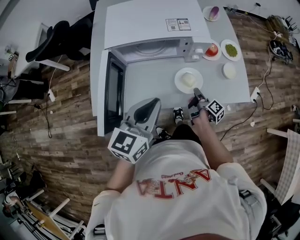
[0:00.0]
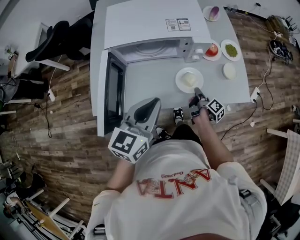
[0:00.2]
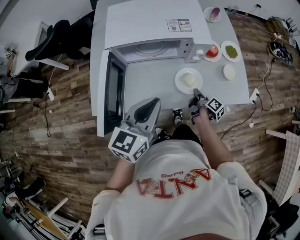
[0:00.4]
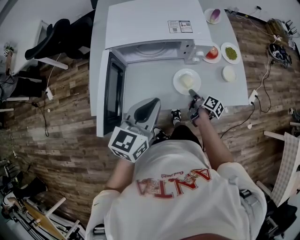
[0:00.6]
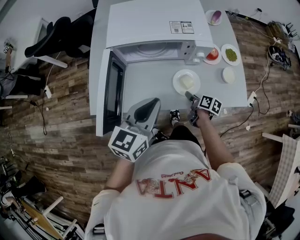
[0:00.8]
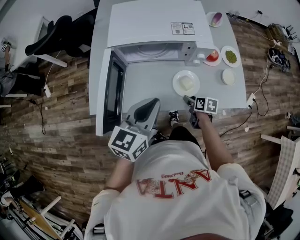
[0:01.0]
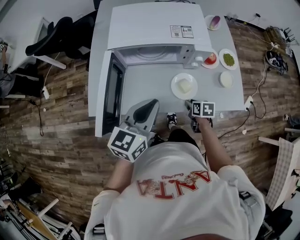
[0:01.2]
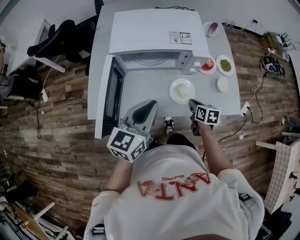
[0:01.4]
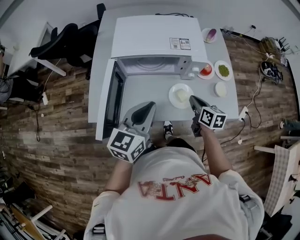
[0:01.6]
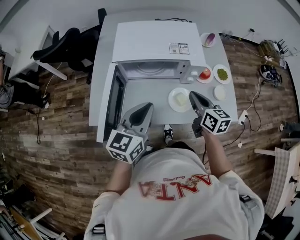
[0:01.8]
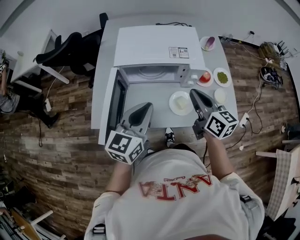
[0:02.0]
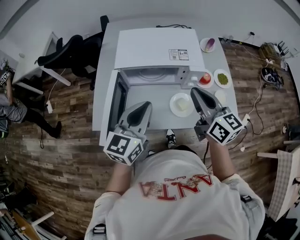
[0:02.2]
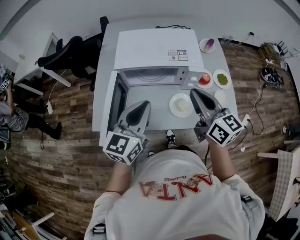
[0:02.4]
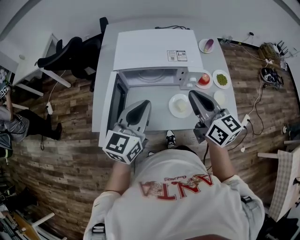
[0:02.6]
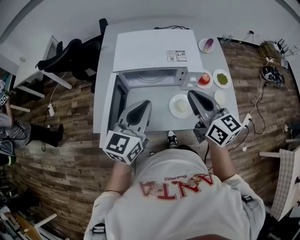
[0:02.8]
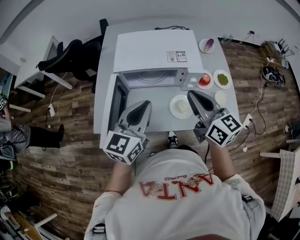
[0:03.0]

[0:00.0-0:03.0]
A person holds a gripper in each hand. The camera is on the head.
0:00.0 to 0:01.6: The right gripper shifts some 15 cm upward, twists roughly 60 degrees counterclockwise, seen from behind, and opens, then closes once more.
0:01.6 to 0:03.0: The left gripper is displaced upward by roughly 5 cm. Meanwhile the right gripper shifts approximately 20 cm upward, and rotates roughly 30 degrees.

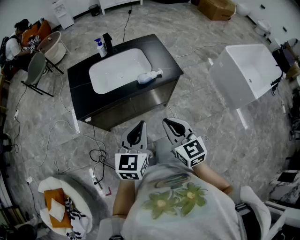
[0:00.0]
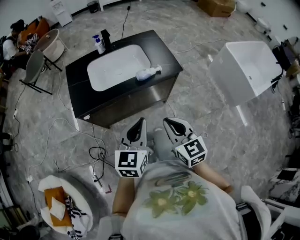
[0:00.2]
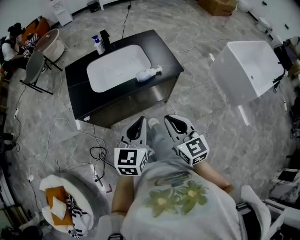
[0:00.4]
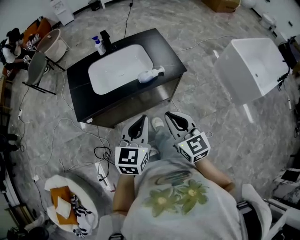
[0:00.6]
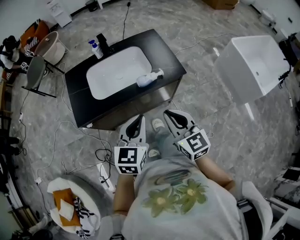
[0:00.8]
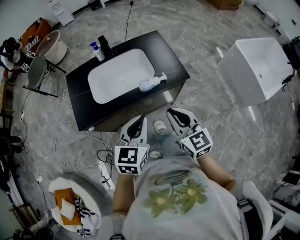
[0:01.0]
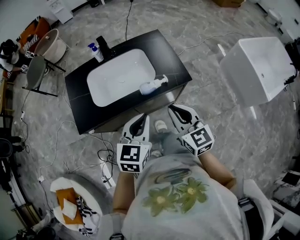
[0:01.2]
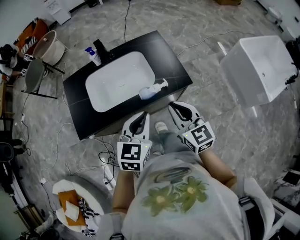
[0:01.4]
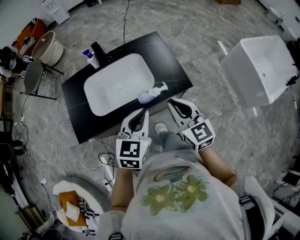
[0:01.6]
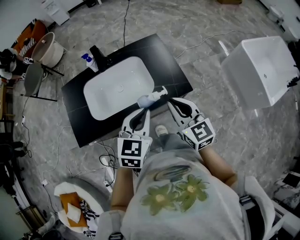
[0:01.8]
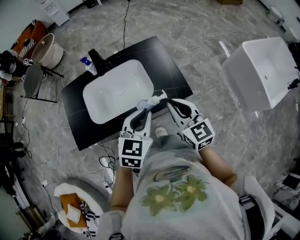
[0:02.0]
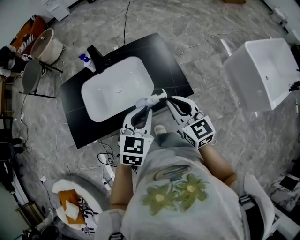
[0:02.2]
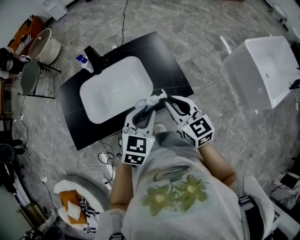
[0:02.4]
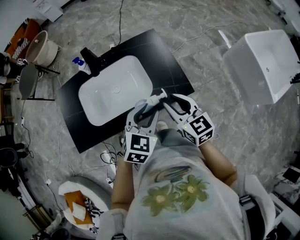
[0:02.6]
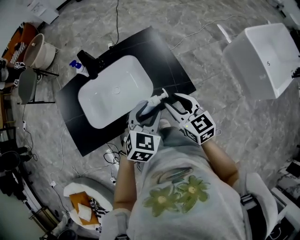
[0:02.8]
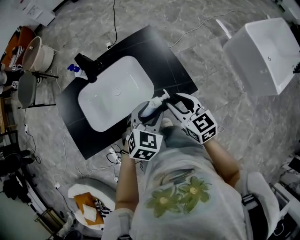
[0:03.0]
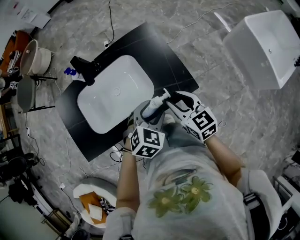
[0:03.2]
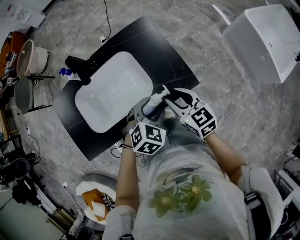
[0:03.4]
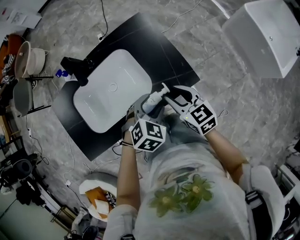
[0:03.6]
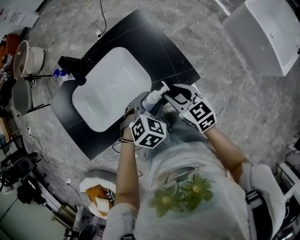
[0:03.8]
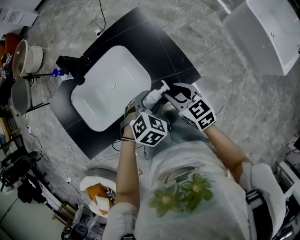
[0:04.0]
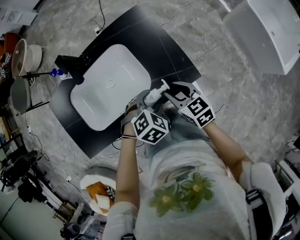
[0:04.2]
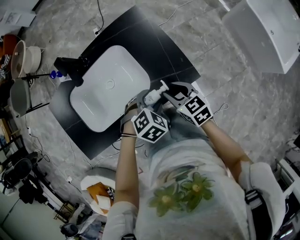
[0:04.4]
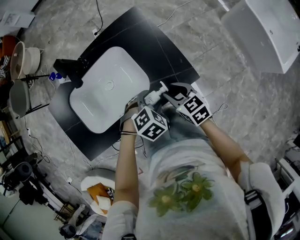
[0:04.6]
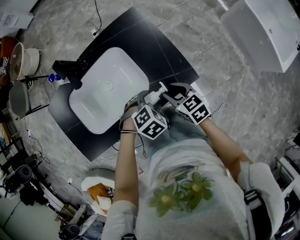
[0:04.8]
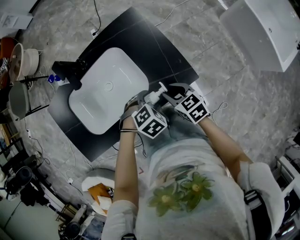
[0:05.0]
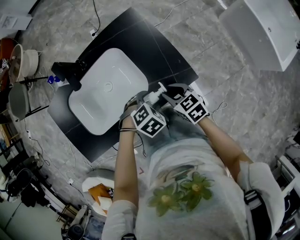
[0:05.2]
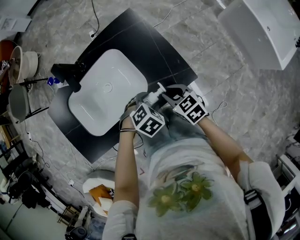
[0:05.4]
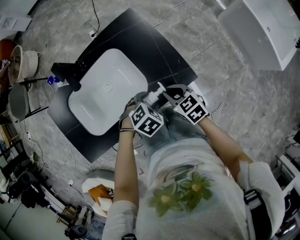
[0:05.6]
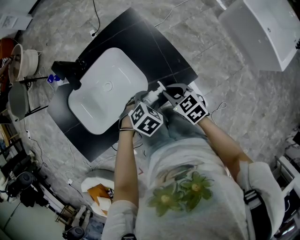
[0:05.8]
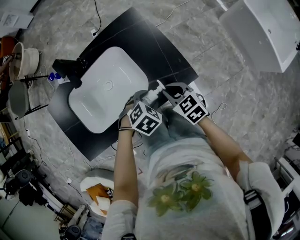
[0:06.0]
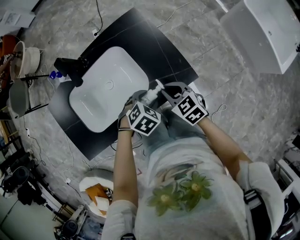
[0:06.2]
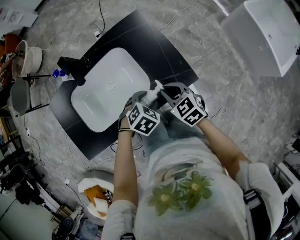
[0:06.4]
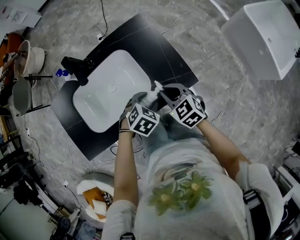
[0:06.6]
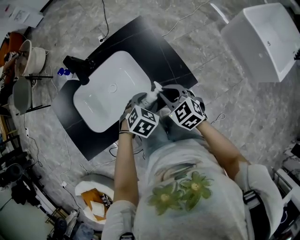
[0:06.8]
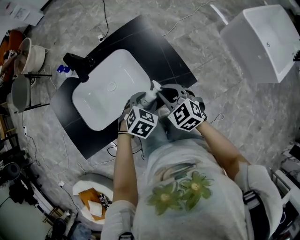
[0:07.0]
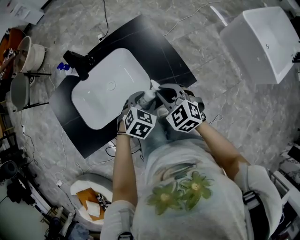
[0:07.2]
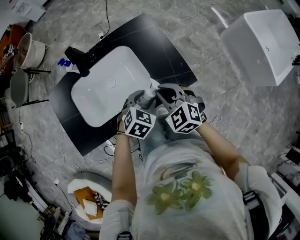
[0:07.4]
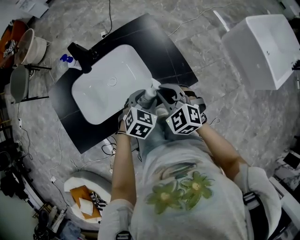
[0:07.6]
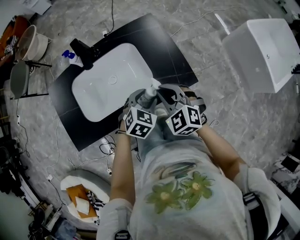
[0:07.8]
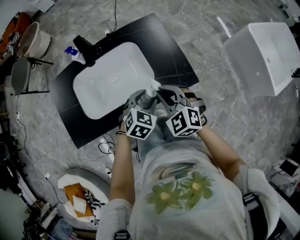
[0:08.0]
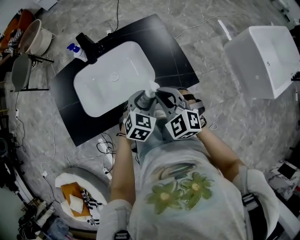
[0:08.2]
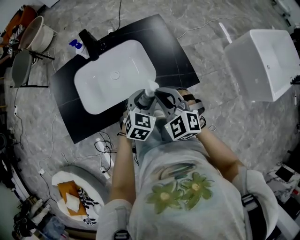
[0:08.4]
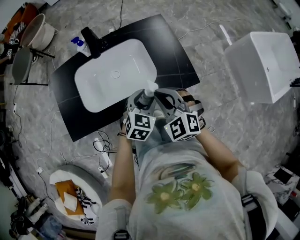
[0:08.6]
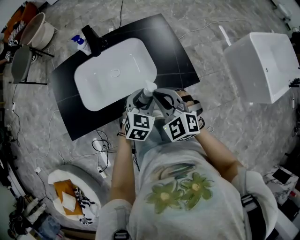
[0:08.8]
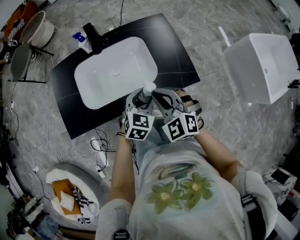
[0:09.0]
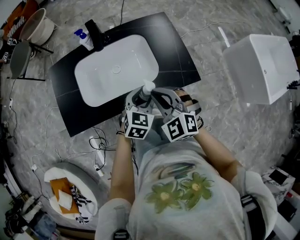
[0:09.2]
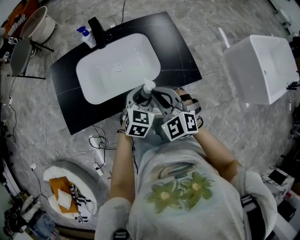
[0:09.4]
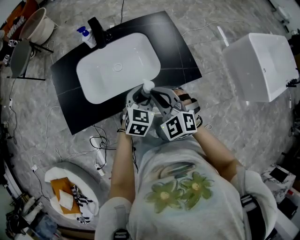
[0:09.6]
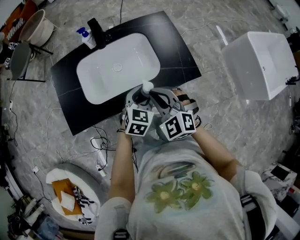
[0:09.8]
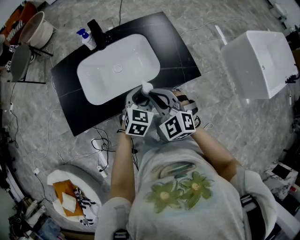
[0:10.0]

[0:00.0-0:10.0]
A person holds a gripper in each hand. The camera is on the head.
0:00.0 to 0:01.4: The grippers both shift forward by approximately 25 cm.
0:01.4 to 0:02.8: The left gripper moves forward, downward and to the right, roughly 20 cm, swivels roughly 20 degrees, and opens up, while the right gripper travels forward and downward by some 15 cm, and opens its fingers.
0:02.8 to 0:04.2: Both grippers travel together downward, about 15 cm. The left gripper changes its angle by about 30 degrees.
0:04.2 to 0:05.8: The grippers move only a little.
0:05.8 to 0:07.2: The right gripper is displaced upward by roughly 10 cm, and turns by roughly 30 degrees. Meanwhile the left gripper moves upward, roughly 5 cm.
0:07.2 to 0:08.6: The left gripper ends up roughly 5 cm from where it was, and changes its angle by roughly 20 degrees. The right gripper moves backward, to the left and upward, roughly 10 cm, and changes its angle by approximately 20 degrees.
0:08.6 to 0:10.0: The right gripper travels to the left by approximately 5 cm. Meanwhile the left gripper shifts by roughly 5 cm.

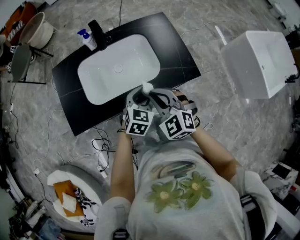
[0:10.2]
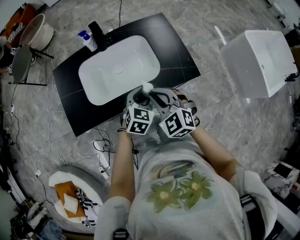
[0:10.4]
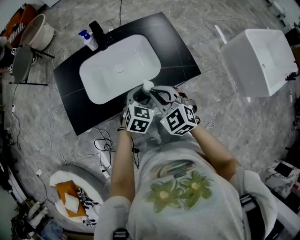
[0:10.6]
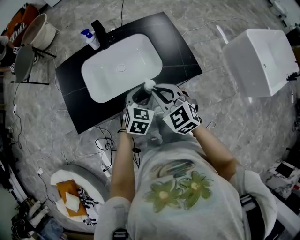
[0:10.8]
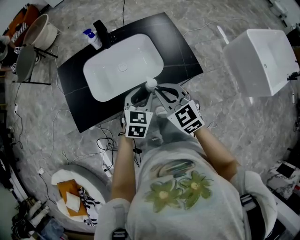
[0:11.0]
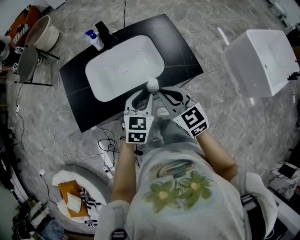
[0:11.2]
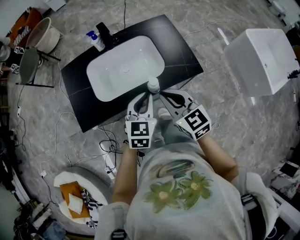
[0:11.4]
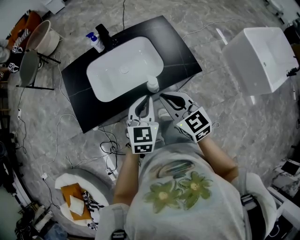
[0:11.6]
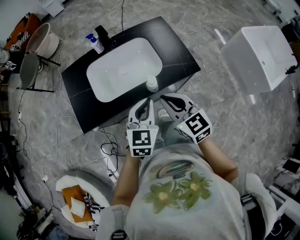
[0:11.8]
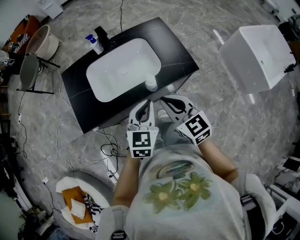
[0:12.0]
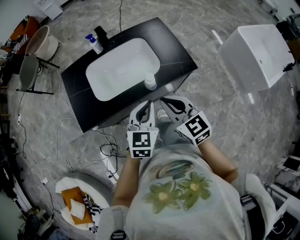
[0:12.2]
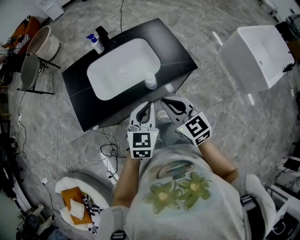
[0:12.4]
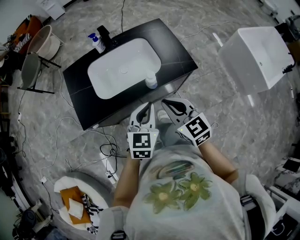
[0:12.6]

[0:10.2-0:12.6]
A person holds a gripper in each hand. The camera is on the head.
0:10.2 to 0:11.4: The left gripper travels upward and backward by approximately 10 cm, and closes its fingers, while the right gripper travels upward by approximately 5 cm, and turns by some 30 degrees.
0:11.4 to 0:12.6: Both grippers move backward, about 10 cm.

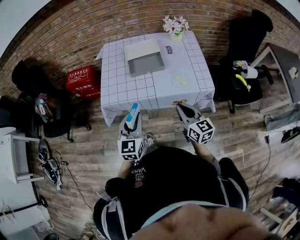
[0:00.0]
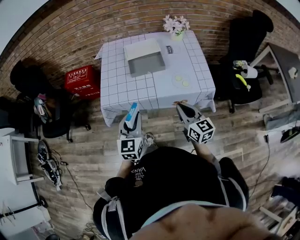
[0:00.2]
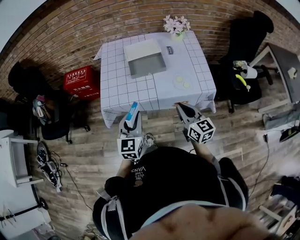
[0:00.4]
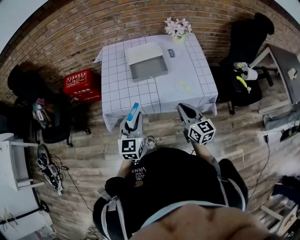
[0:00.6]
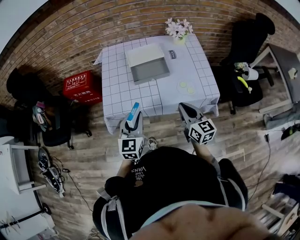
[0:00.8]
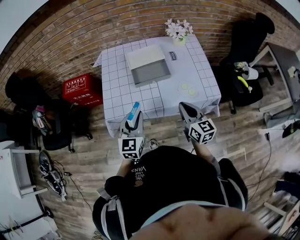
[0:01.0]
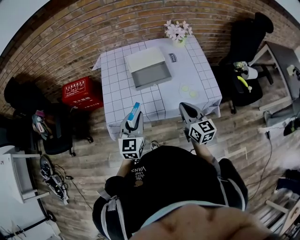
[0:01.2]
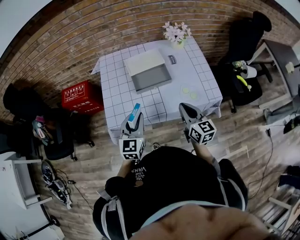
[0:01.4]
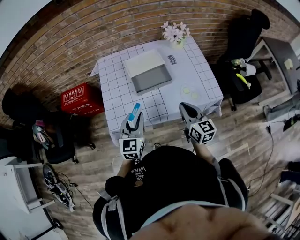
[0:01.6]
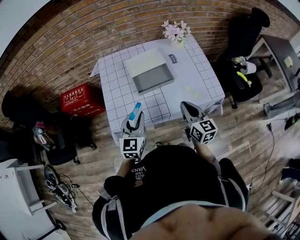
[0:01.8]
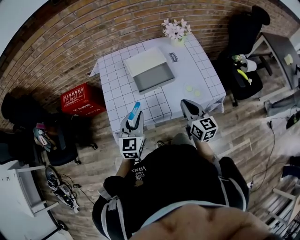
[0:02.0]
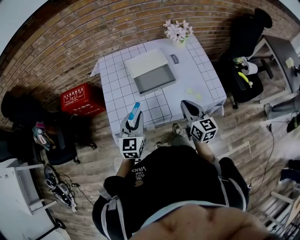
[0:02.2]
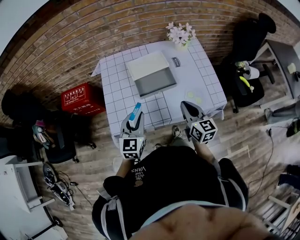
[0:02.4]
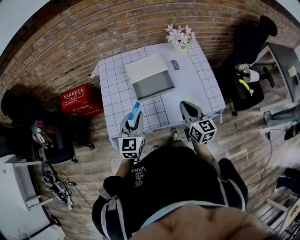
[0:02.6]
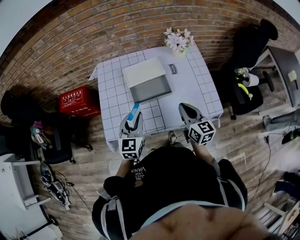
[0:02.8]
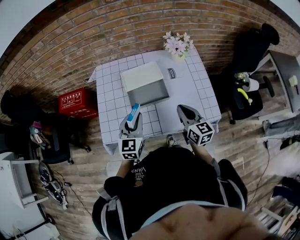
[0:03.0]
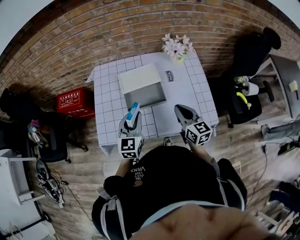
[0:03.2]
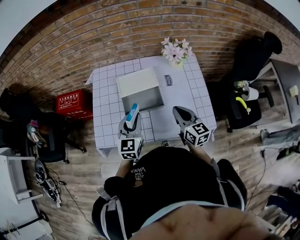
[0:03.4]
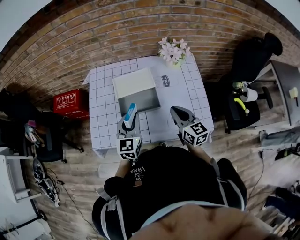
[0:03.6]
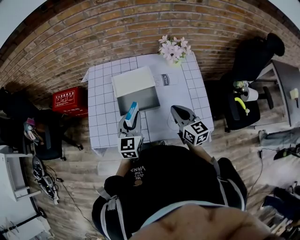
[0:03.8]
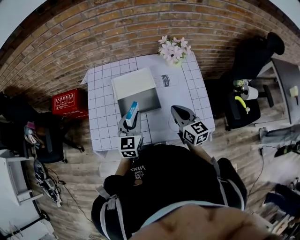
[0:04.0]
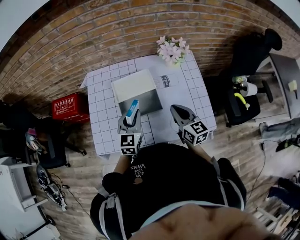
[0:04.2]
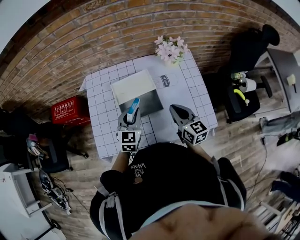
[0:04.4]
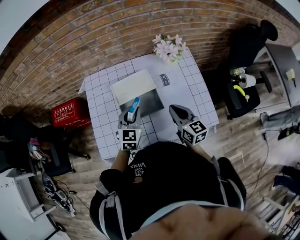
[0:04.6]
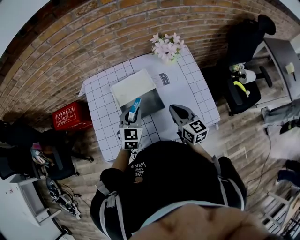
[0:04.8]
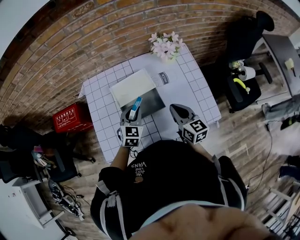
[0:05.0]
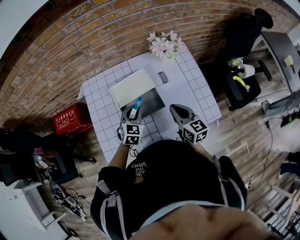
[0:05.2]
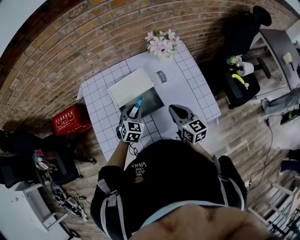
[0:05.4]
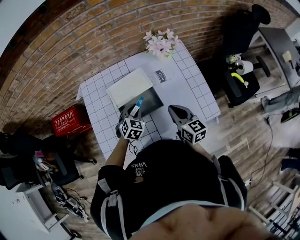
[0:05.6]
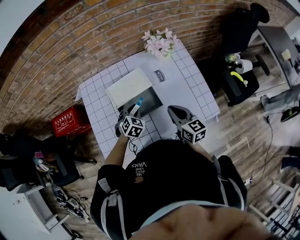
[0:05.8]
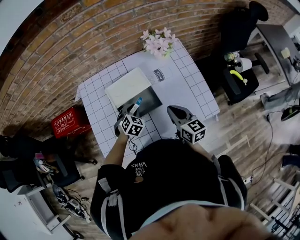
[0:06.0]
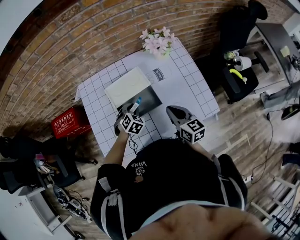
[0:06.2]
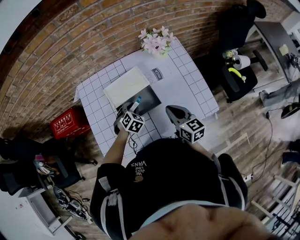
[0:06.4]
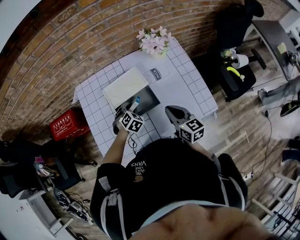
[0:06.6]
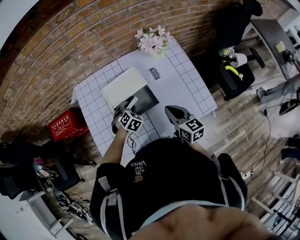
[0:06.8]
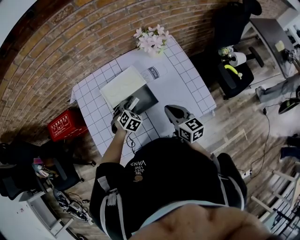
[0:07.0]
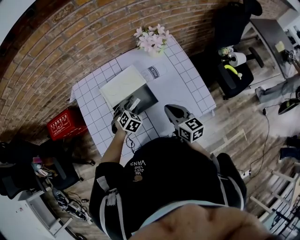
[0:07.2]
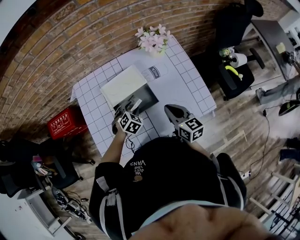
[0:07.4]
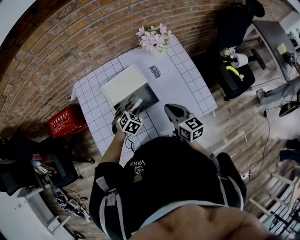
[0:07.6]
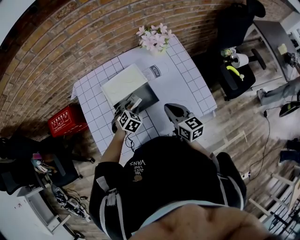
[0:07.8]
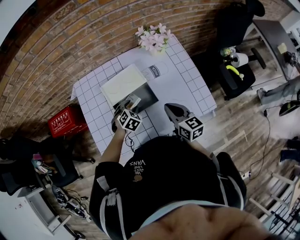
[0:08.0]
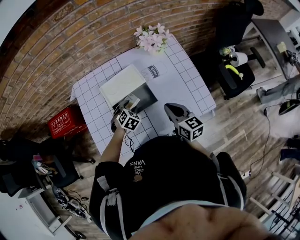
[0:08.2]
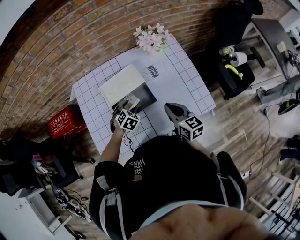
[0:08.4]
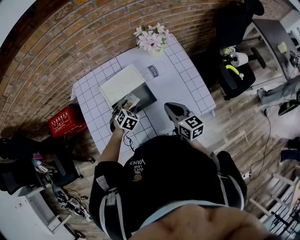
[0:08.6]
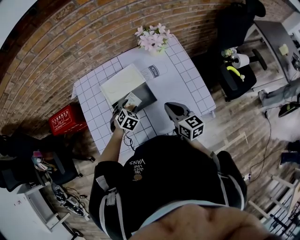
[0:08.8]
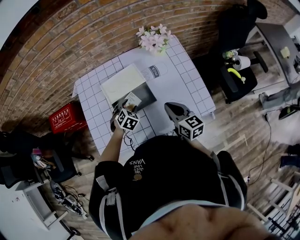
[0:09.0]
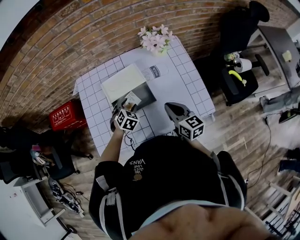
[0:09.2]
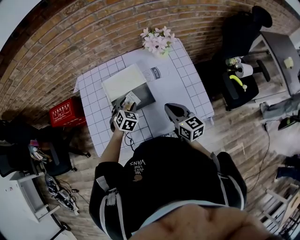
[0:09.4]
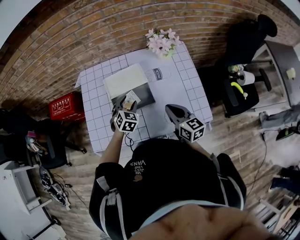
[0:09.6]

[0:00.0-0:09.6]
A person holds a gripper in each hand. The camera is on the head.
0:00.0 to 0:01.6: The grippers both shift forward by approximately 15 cm.
0:01.6 to 0:03.2: The right gripper is displaced forward by some 10 cm. The left gripper heads forward and to the right, covering about 15 cm.
0:03.2 to 0:04.8: The left gripper travels forward and downward by approximately 10 cm. The right gripper moves forward, some 5 cm.
0:04.8 to 0:06.4: The left gripper heads downward, covering approximately 15 cm, and tips its fingers downward by about 30 degrees.
0:06.4 to 0:08.0: The left gripper opens.
0:08.0 to 0:09.6: The left gripper shifts approximately 5 cm upward, and changes its angle by approximately 20 degrees.
